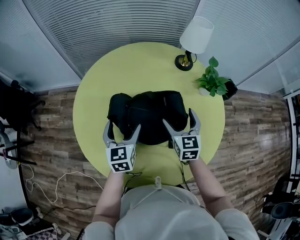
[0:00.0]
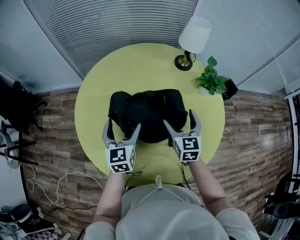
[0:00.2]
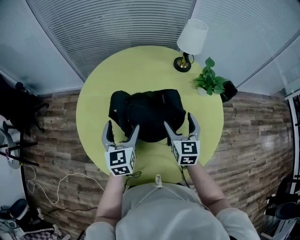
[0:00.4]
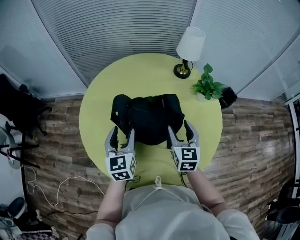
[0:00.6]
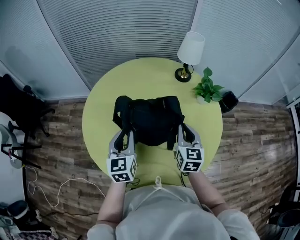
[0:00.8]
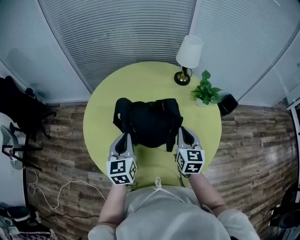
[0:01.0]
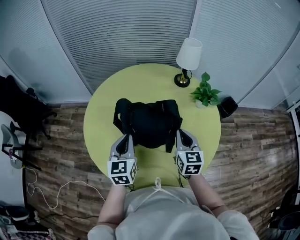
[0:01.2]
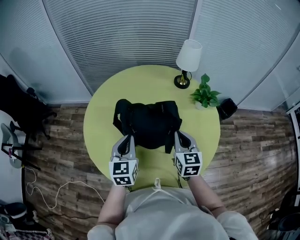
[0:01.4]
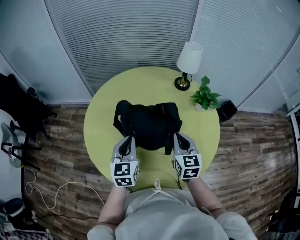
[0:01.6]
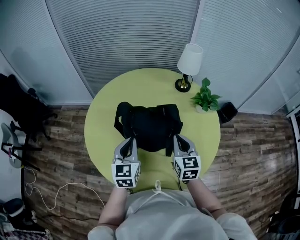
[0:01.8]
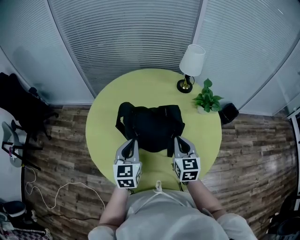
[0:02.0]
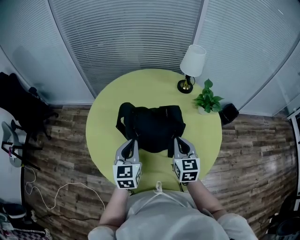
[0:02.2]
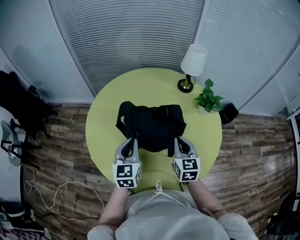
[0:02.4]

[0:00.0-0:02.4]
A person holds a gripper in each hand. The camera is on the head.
0.0 to 1.2 s: Both grippers travel together backward and upward, about 10 cm. The left gripper closes up; the right gripper closes its fingers.
1.2 to 2.4 s: There are only small adjustments of the grippers.

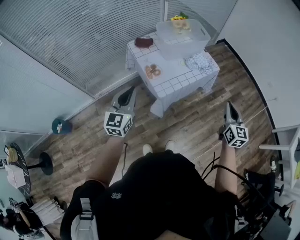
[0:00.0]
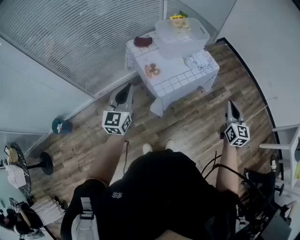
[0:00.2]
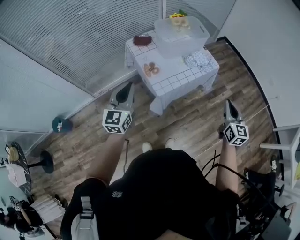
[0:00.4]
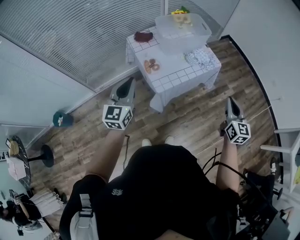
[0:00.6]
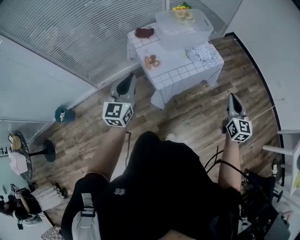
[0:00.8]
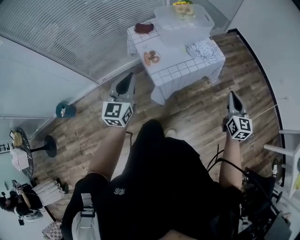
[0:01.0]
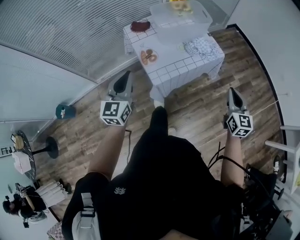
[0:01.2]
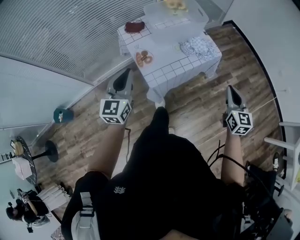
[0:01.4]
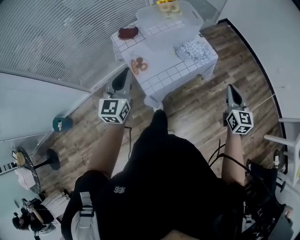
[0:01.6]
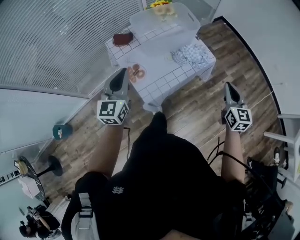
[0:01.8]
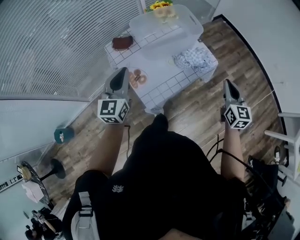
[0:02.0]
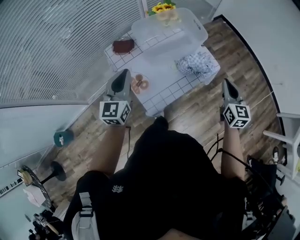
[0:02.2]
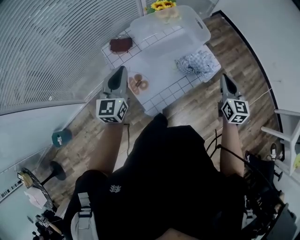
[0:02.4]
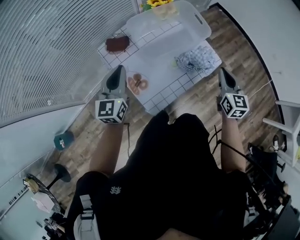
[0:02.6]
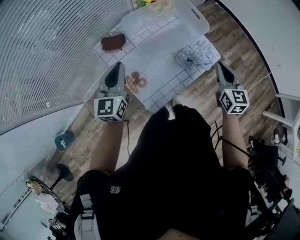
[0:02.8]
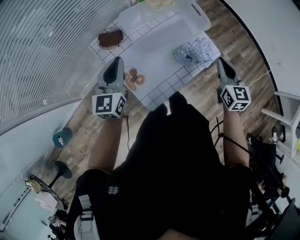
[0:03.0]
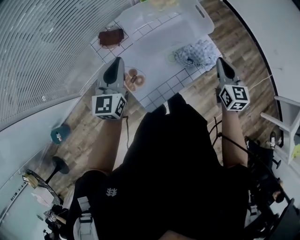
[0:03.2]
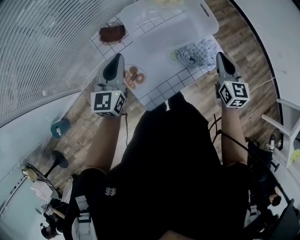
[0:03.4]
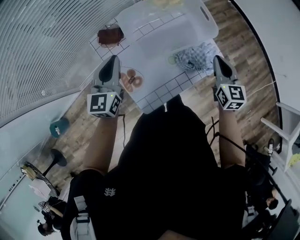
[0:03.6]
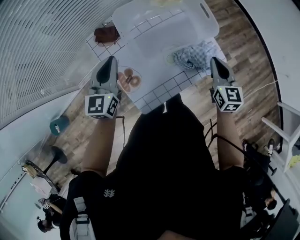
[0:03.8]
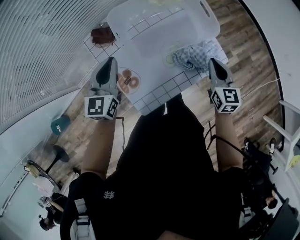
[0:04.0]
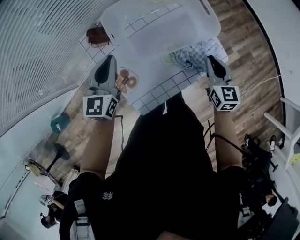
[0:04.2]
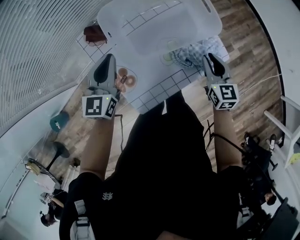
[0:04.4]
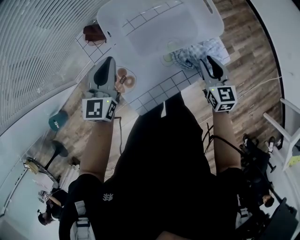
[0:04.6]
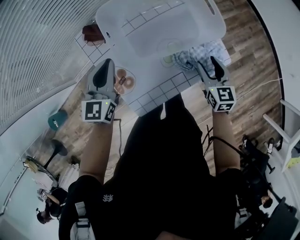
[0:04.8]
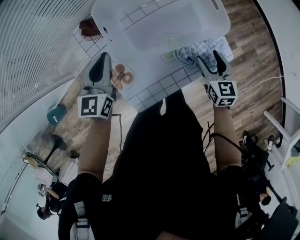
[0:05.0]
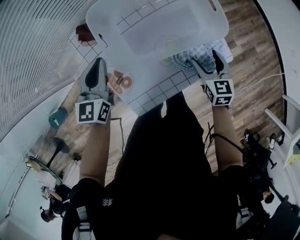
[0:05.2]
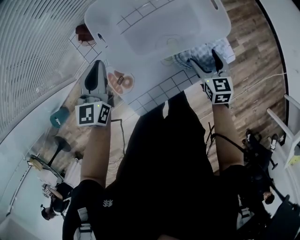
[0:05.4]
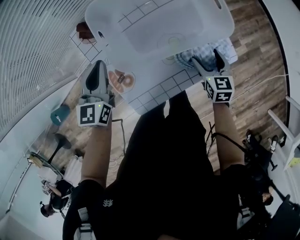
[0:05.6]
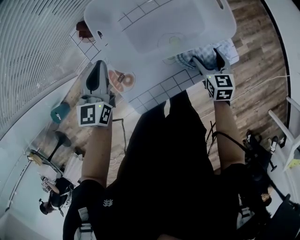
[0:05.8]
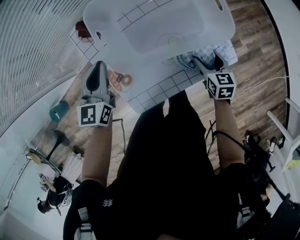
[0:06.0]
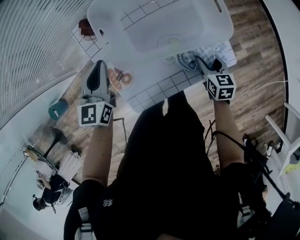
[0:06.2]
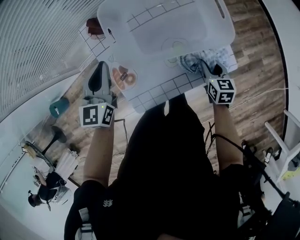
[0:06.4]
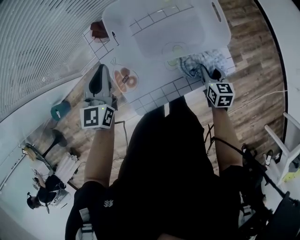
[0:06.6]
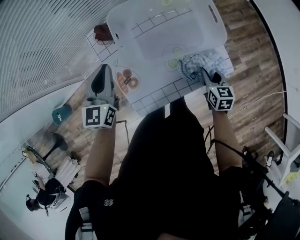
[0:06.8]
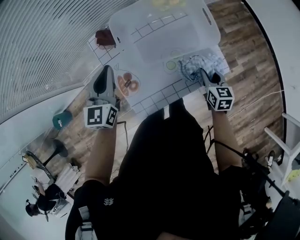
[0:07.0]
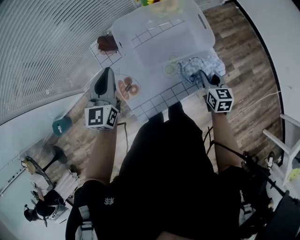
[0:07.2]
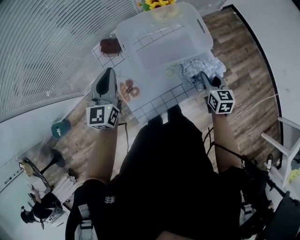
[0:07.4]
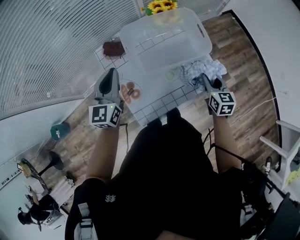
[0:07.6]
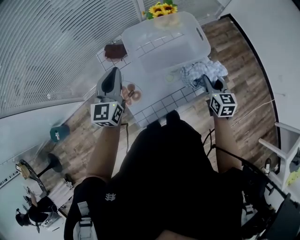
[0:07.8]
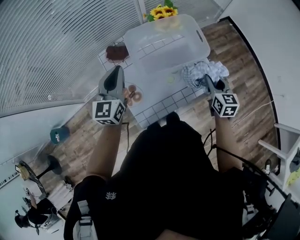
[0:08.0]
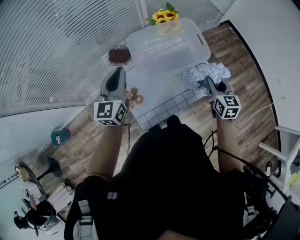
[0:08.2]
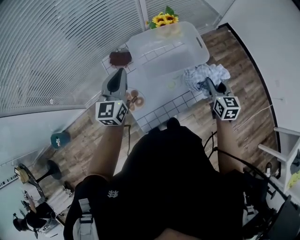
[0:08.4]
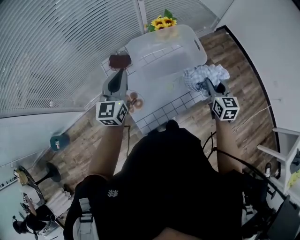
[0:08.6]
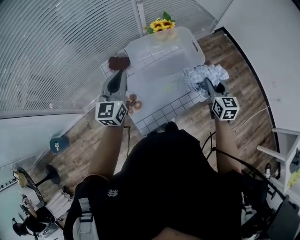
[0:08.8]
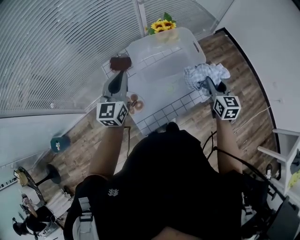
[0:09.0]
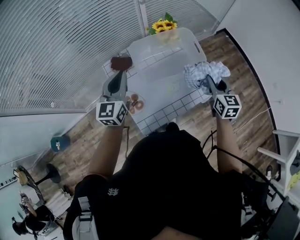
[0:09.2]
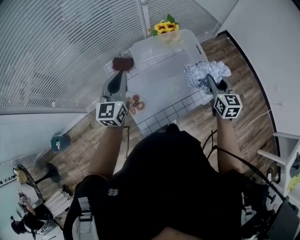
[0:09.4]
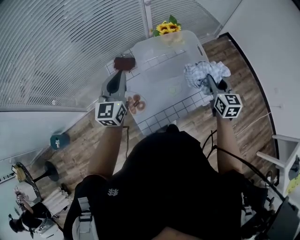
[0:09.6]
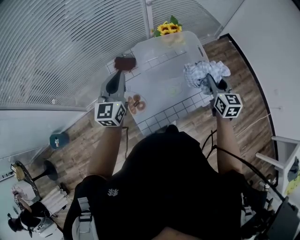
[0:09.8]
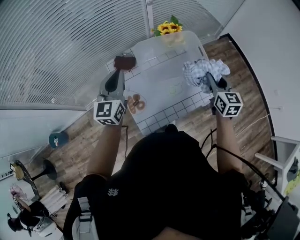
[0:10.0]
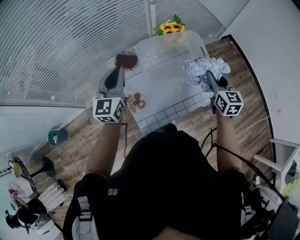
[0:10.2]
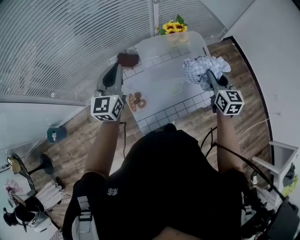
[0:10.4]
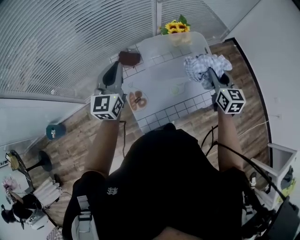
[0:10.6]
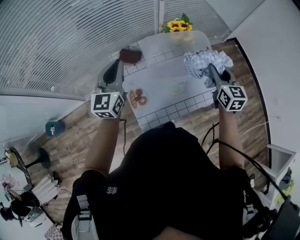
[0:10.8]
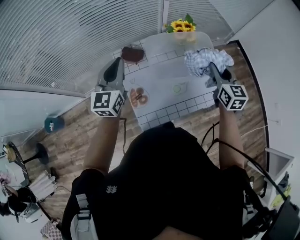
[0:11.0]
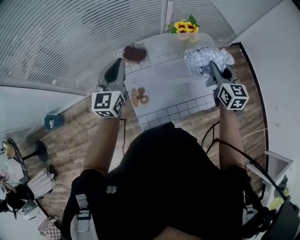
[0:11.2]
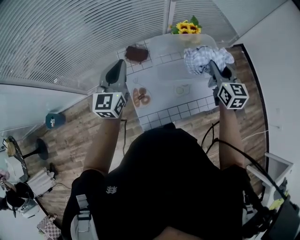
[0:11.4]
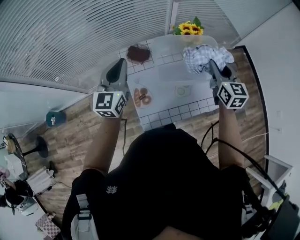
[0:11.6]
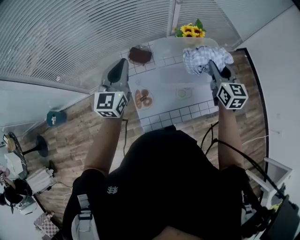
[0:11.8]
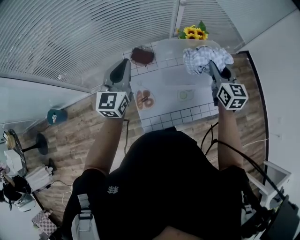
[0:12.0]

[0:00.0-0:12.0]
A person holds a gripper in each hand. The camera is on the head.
0.0 to 1.6 s: The two grippers go approximately 15 cm forward and to the right.
1.6 to 3.0 s: The left gripper is displaced forward by roughly 25 cm. Meanwhile the right gripper travels forward and to the left by some 25 cm.
3.0 to 4.4 s: The two grippers go about 15 cm downward and forward.
4.4 to 6.0 s: The left gripper is displaced downward by some 5 cm. The right gripper travels downward by roughly 15 cm, swivels about 20 degrees, and opens up.
6.0 to 7.6 s: Both grippers travel together upward, roughly 15 cm. The right gripper closes.
7.6 to 9.0 s: The left gripper heads upward, covering some 5 cm. The right gripper is displaced upward by roughly 10 cm.
9.0 to 10.4 s: The left gripper ends up about 5 cm from where it was. Meanwhile the right gripper ends up approximately 5 cm from where it was.
10.4 to 12.0 s: The right gripper goes approximately 10 cm forward and to the left.

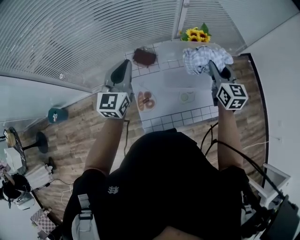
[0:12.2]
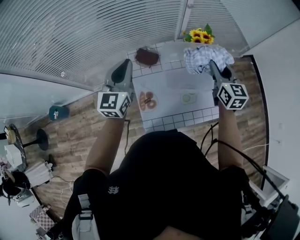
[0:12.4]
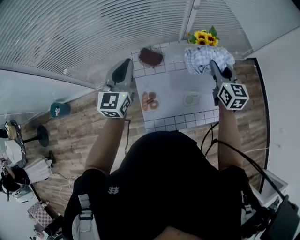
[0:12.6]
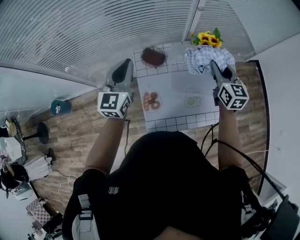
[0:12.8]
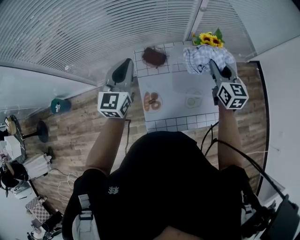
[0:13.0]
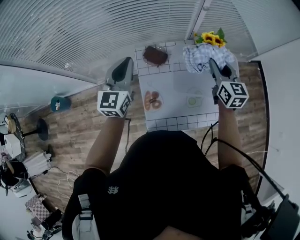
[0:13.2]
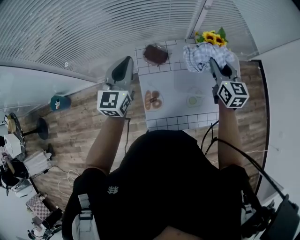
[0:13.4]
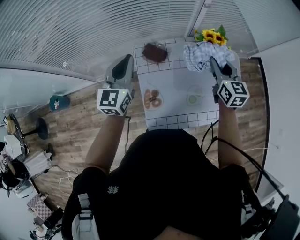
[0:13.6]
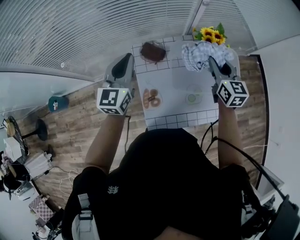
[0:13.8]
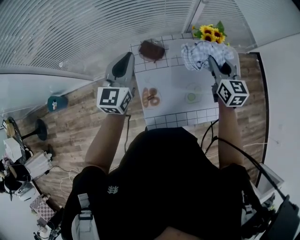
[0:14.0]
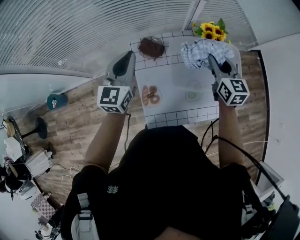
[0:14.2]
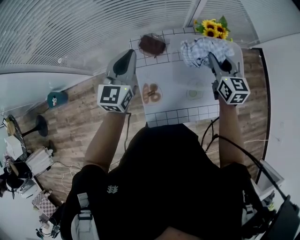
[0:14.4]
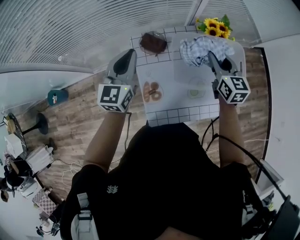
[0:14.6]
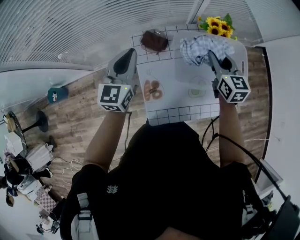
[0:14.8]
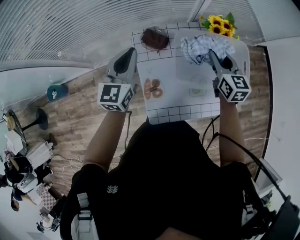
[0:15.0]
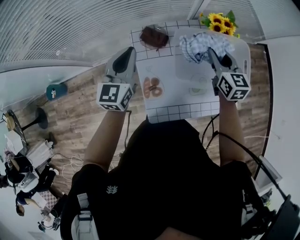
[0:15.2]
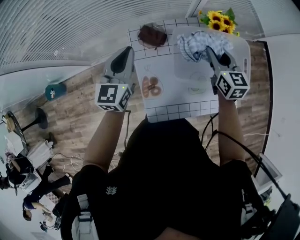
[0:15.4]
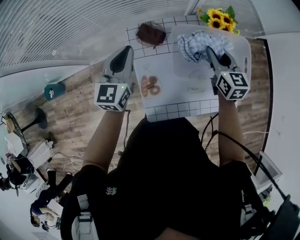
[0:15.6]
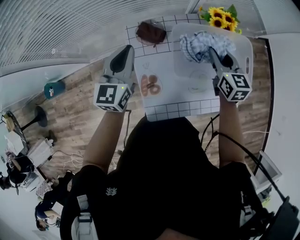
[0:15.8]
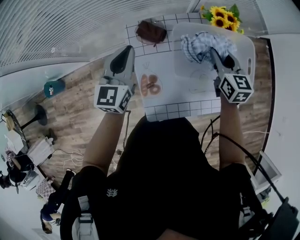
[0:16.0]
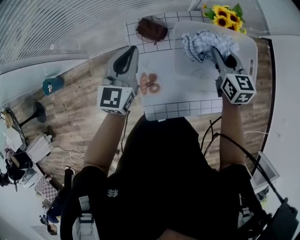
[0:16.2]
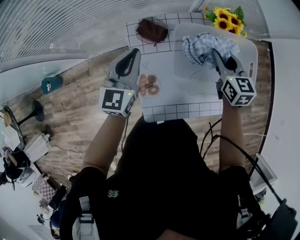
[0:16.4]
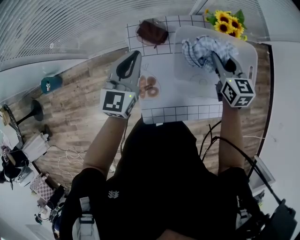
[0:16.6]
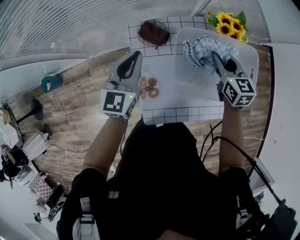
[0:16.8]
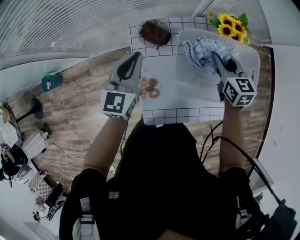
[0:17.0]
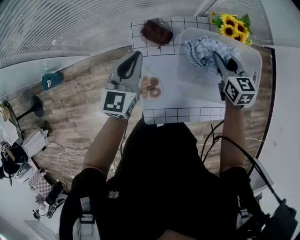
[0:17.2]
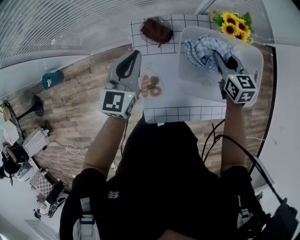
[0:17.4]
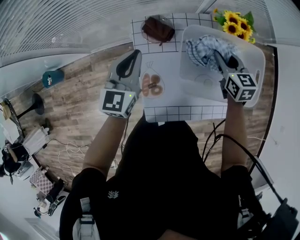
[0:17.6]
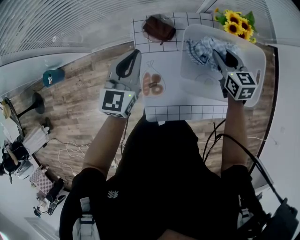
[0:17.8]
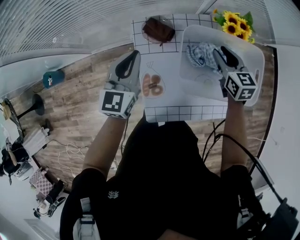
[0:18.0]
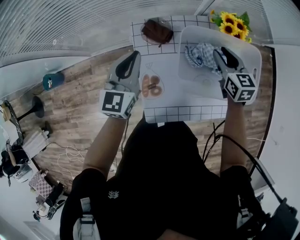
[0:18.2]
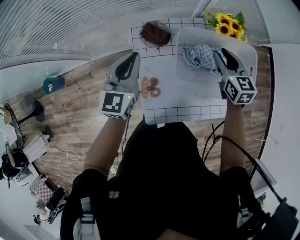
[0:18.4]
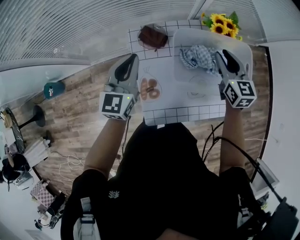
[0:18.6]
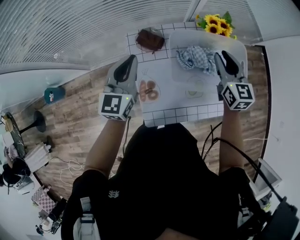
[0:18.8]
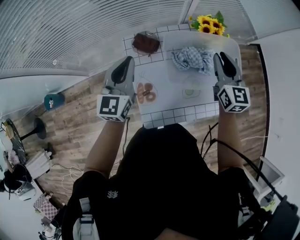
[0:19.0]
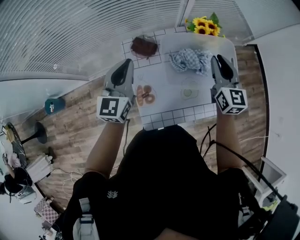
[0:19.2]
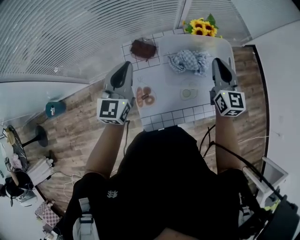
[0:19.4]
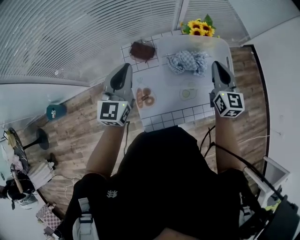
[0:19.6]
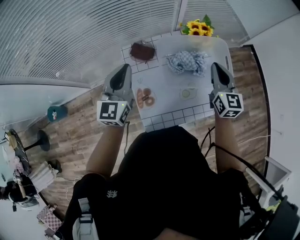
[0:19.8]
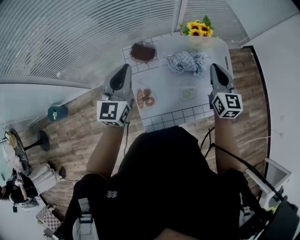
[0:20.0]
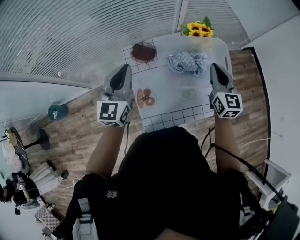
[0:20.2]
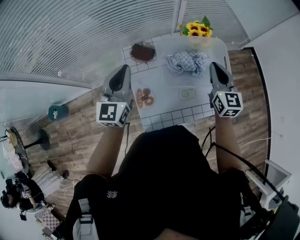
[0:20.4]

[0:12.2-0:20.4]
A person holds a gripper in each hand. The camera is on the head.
12.2 to 13.8 s: The right gripper goes roughly 10 cm forward and to the left. The left gripper changes place by roughly 5 cm.
13.8 to 15.4 s: Both grippers travel together downward, approximately 5 cm.
15.4 to 17.2 s: The right gripper goes about 5 cm downward, while the left gripper changes place by approximately 5 cm.
17.2 to 18.8 s: The left gripper shifts roughly 5 cm upward. Meanwhile the right gripper is displaced upward by approximately 10 cm.
18.8 to 20.4 s: The left gripper travels upward and backward by some 10 cm. Meanwhile the right gripper shifts roughly 10 cm backward.

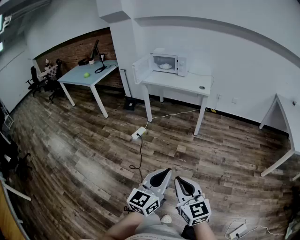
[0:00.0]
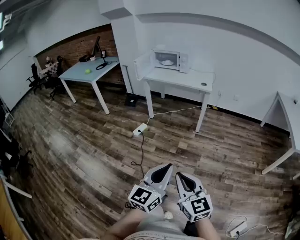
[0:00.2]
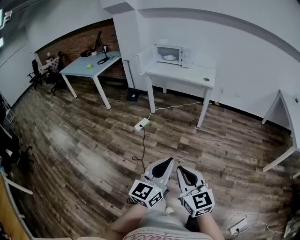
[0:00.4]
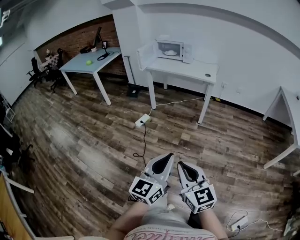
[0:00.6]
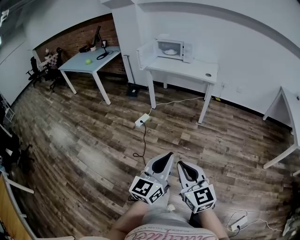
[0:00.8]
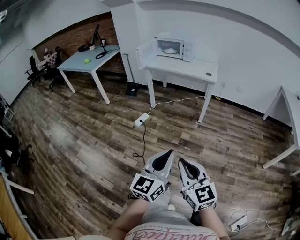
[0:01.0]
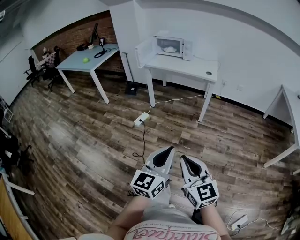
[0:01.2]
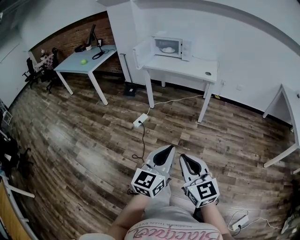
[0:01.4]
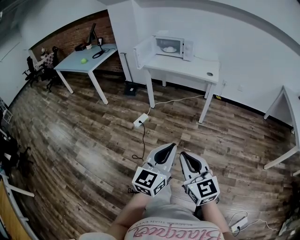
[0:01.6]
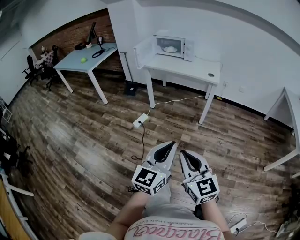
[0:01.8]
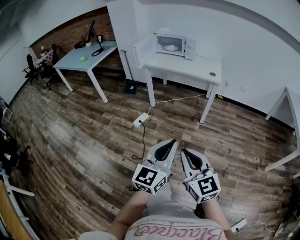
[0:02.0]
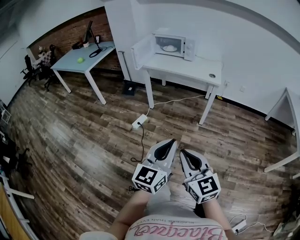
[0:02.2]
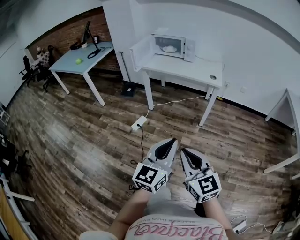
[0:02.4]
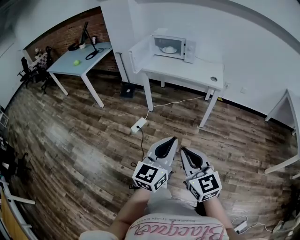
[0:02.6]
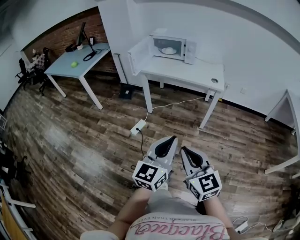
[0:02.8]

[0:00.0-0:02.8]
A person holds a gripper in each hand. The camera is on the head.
0.0 to 1.4 s: Both grippers travel together forward, roughly 10 cm.
1.4 to 2.8 s: The grippers both shift forward by about 20 cm.
